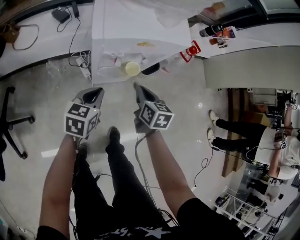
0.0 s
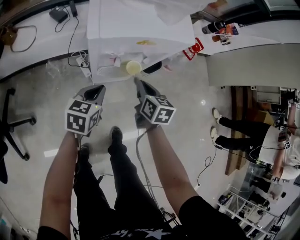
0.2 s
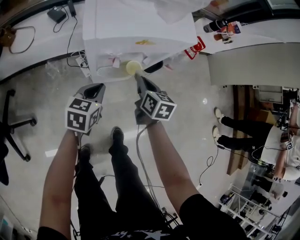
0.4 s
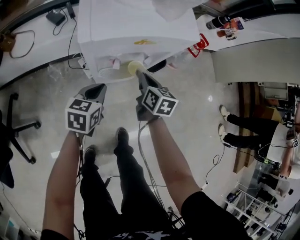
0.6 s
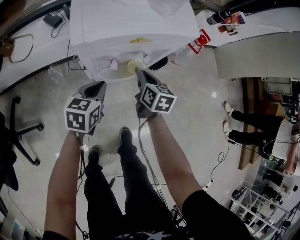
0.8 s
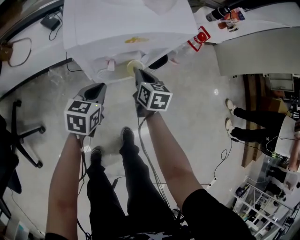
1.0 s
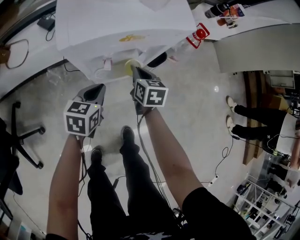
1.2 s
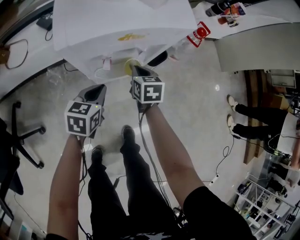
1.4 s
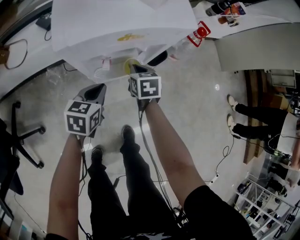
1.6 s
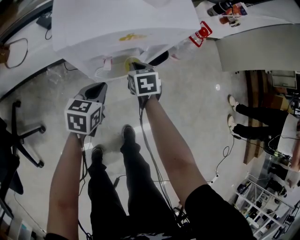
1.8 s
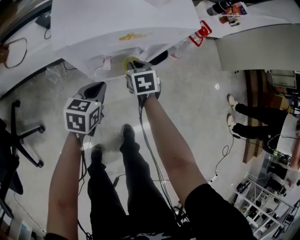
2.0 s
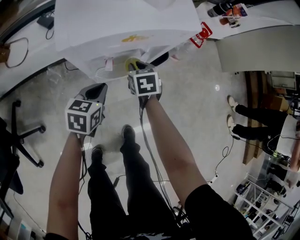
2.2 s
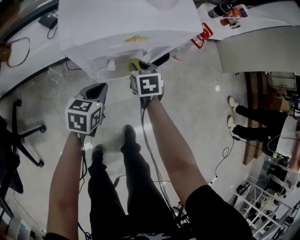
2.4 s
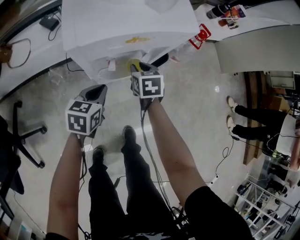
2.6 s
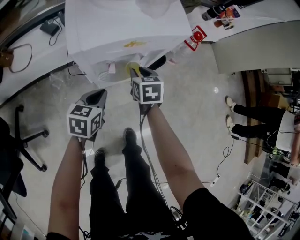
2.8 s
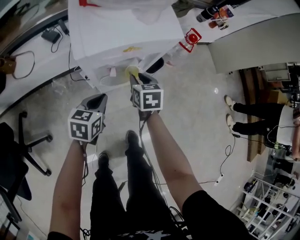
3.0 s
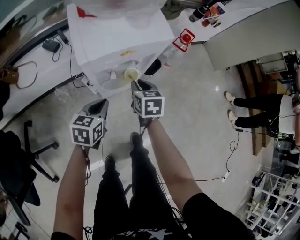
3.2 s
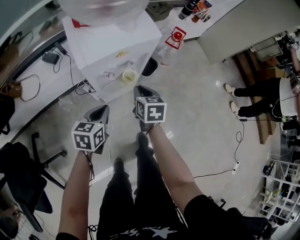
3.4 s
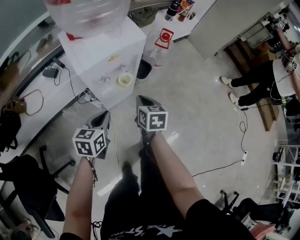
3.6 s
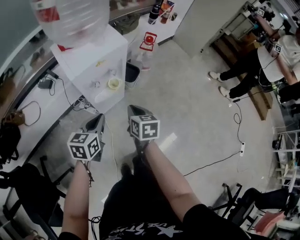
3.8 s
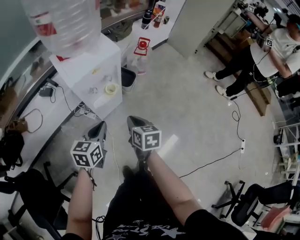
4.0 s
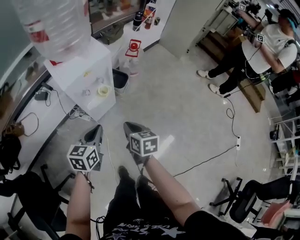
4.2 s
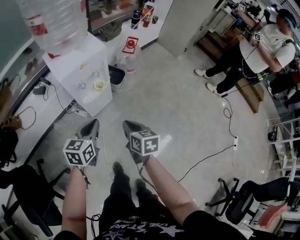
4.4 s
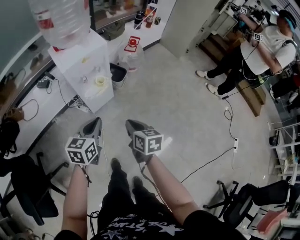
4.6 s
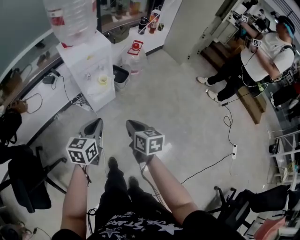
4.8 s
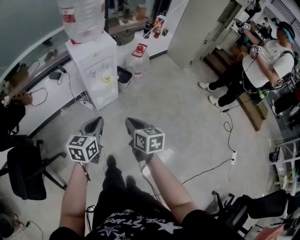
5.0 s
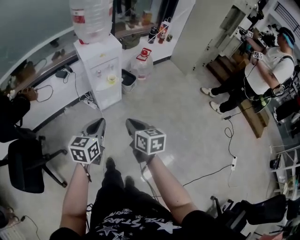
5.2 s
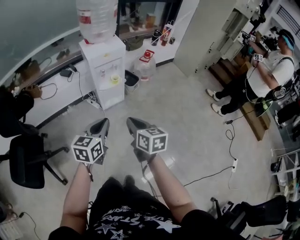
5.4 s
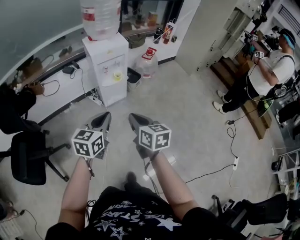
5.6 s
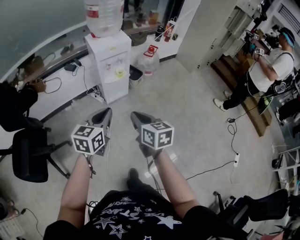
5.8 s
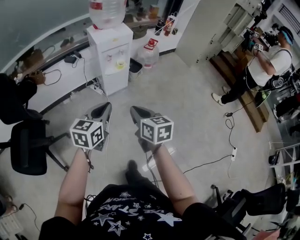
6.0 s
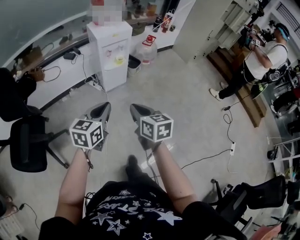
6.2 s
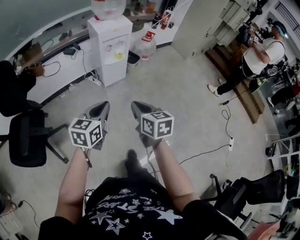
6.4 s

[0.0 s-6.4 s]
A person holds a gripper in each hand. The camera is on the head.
0.0 to 1.6 s: The right gripper moves downward and forward, approximately 15 cm. The left gripper moves downward and forward, roughly 10 cm.
1.6 to 3.2 s: The right gripper shifts approximately 10 cm upward and backward, and opens up, while the left gripper goes about 5 cm upward.
3.2 to 4.8 s: The grippers both shift backward, upward and to the right by about 40 cm. The right gripper swivels roughly 20 degrees, and closes up.
4.8 to 6.4 s: Both grippers move backward, some 30 cm.

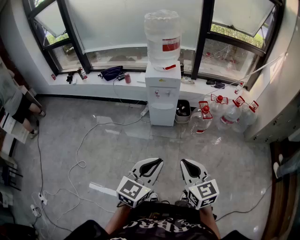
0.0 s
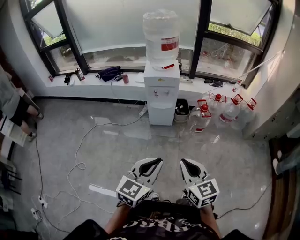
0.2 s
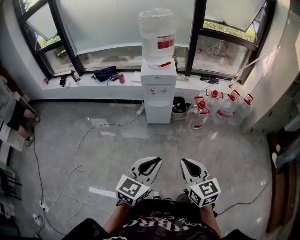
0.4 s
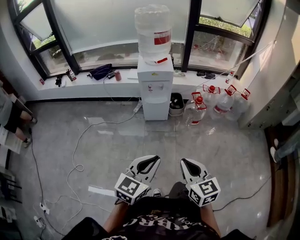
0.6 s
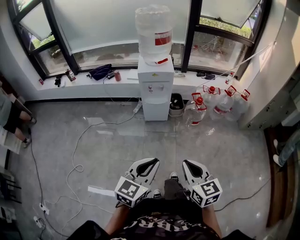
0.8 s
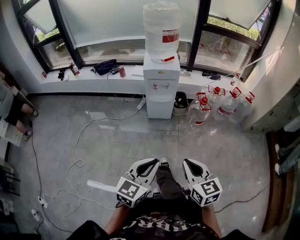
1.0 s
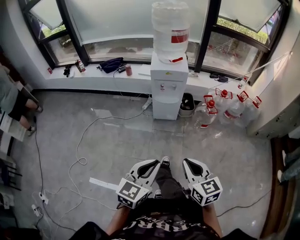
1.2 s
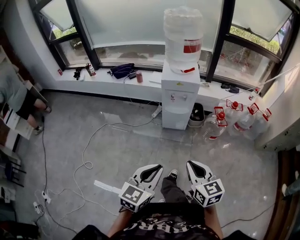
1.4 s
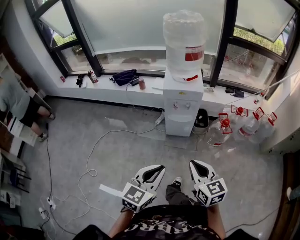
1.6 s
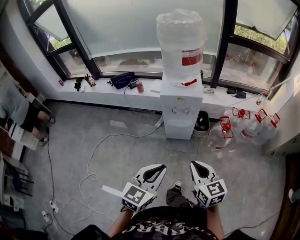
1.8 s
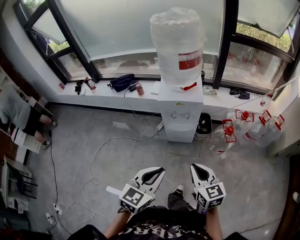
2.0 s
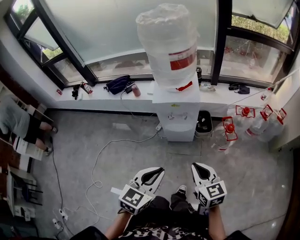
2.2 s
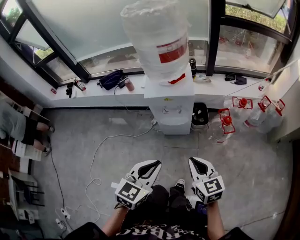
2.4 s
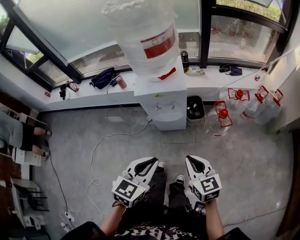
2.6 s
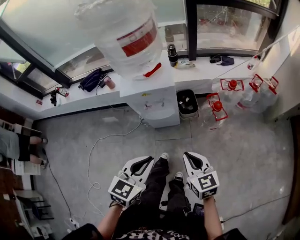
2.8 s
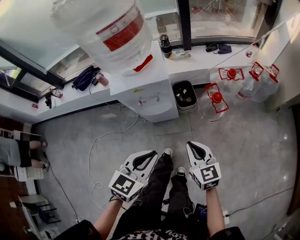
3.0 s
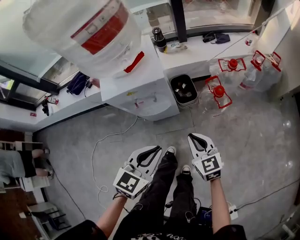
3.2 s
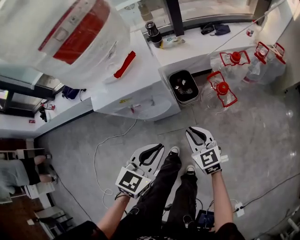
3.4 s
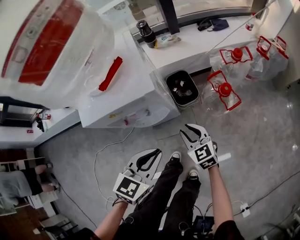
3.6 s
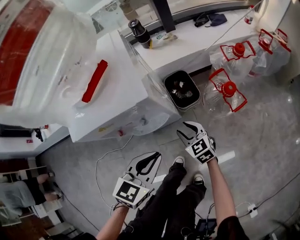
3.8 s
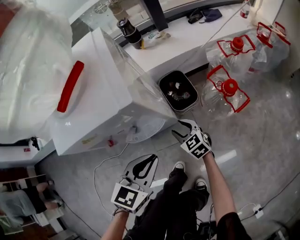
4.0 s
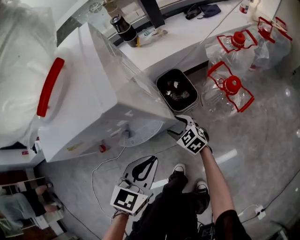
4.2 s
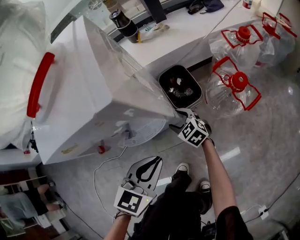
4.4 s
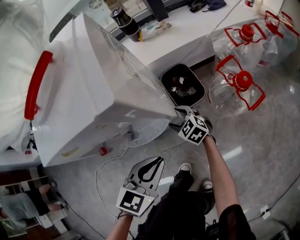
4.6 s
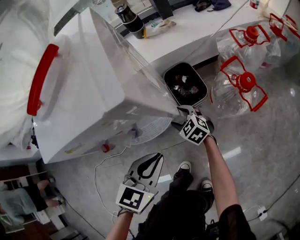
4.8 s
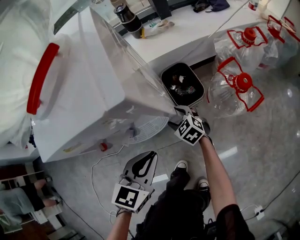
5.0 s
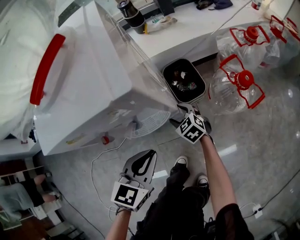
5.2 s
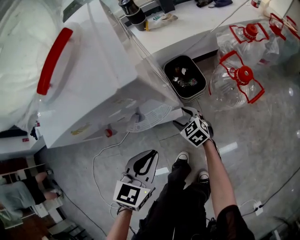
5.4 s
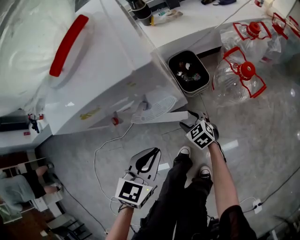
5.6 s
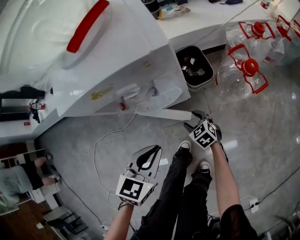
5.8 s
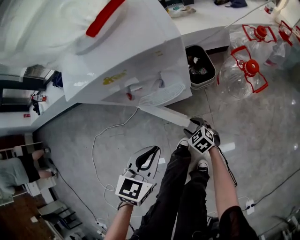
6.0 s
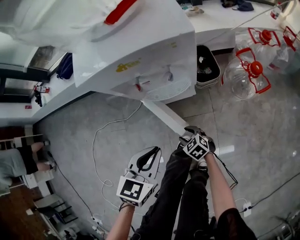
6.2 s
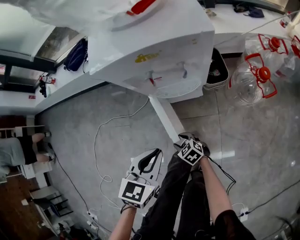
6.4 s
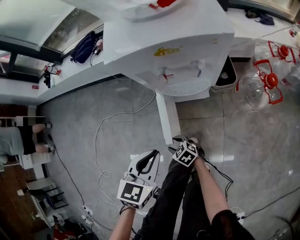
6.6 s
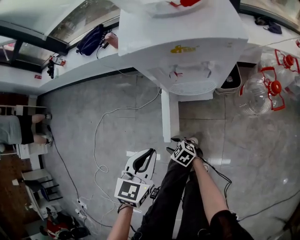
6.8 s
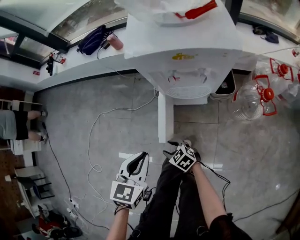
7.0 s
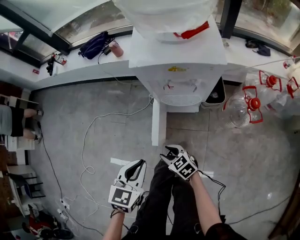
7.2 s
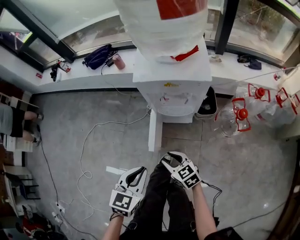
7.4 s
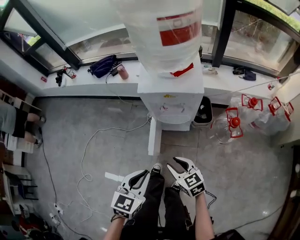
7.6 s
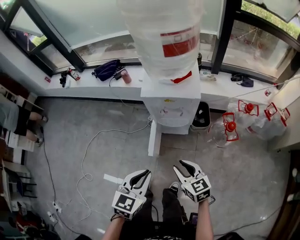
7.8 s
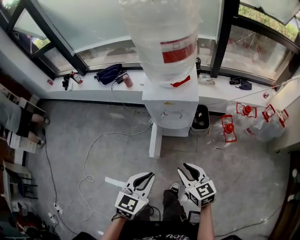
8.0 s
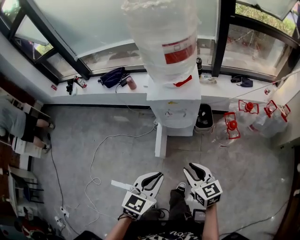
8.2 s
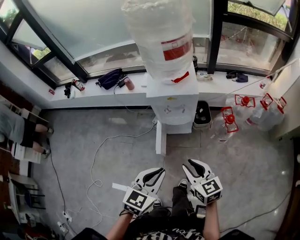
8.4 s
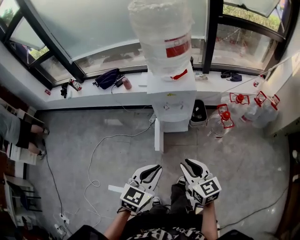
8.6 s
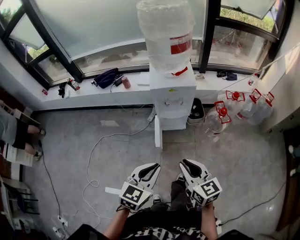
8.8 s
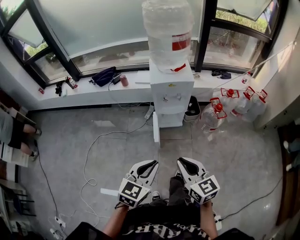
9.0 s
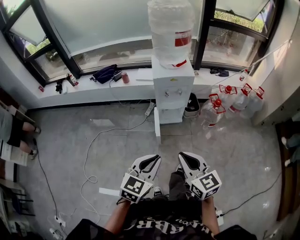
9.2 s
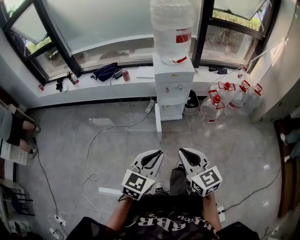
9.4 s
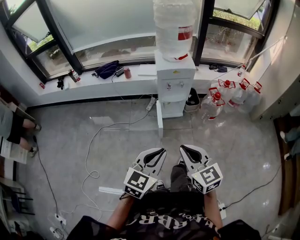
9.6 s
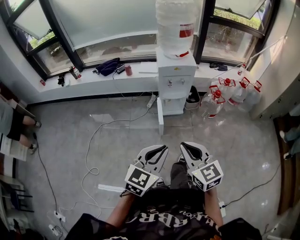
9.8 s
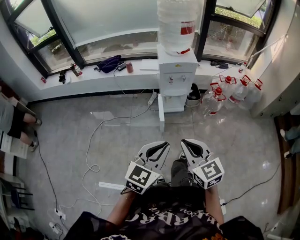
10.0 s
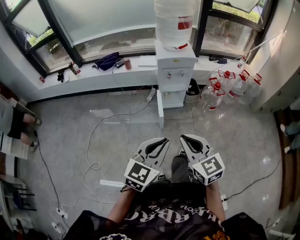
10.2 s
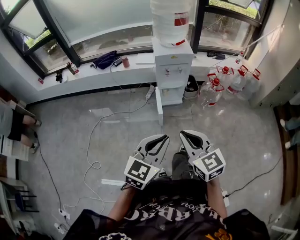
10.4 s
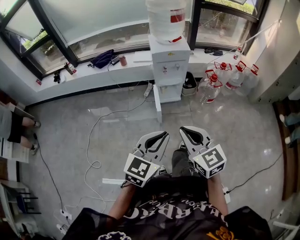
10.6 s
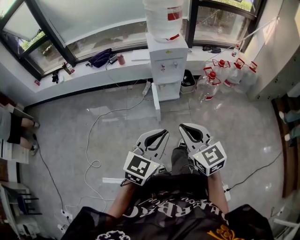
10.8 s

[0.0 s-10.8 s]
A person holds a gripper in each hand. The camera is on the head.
0.0 to 1.6 s: Both grippers move forward and to the left, approximately 20 cm.
1.6 to 3.0 s: The left gripper heads forward and downward, covering approximately 30 cm, and rotates about 20 degrees; the right gripper heads forward, downward and to the right, covering approximately 35 cm.
3.0 to 4.6 s: Both grippers travel together downward and forward, roughly 50 cm. The right gripper swivels roughly 30 degrees, and opens its fingers.
4.6 to 6.2 s: The right gripper moves backward, approximately 25 cm; the left gripper is displaced backward, to the left and upward by approximately 15 cm.
6.2 to 7.8 s: The left gripper goes some 30 cm upward and backward. Meanwhile the right gripper shifts some 40 cm upward, and swivels approximately 20 degrees.
7.8 to 9.2 s: The right gripper shifts roughly 35 cm backward, upward and to the left, swivels about 20 degrees, and closes its fingers. Meanwhile the left gripper goes about 25 cm backward, to the left and upward.
9.2 to 10.8 s: Both grippers move backward, roughly 10 cm.

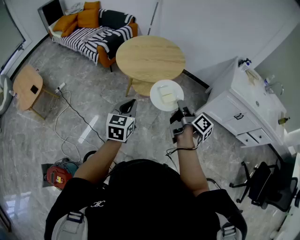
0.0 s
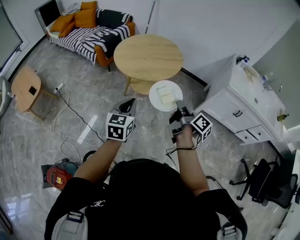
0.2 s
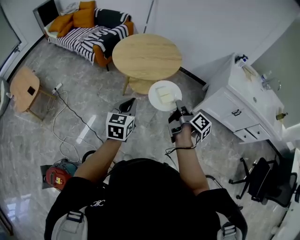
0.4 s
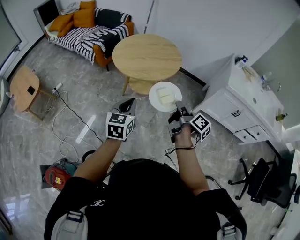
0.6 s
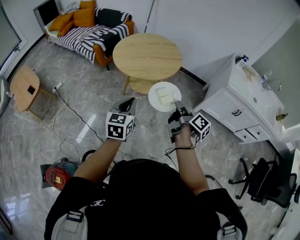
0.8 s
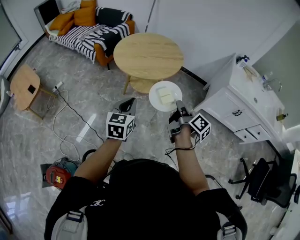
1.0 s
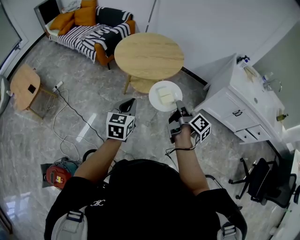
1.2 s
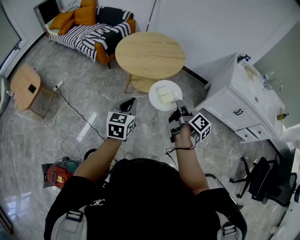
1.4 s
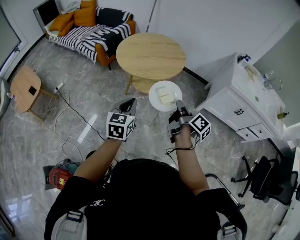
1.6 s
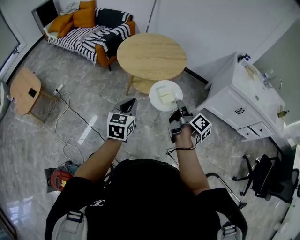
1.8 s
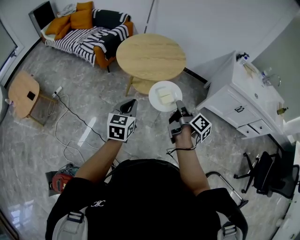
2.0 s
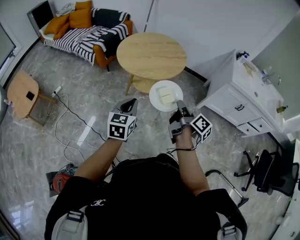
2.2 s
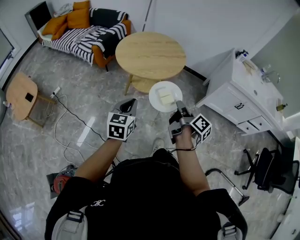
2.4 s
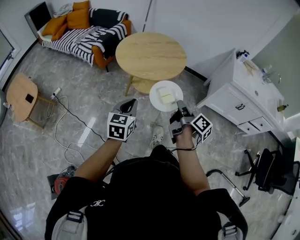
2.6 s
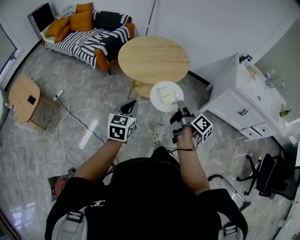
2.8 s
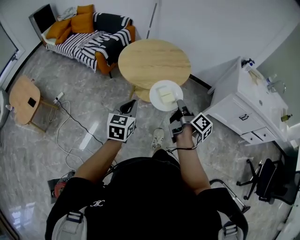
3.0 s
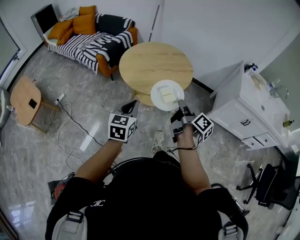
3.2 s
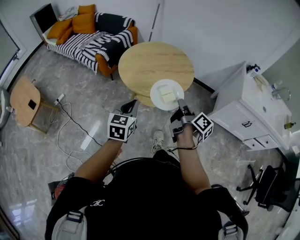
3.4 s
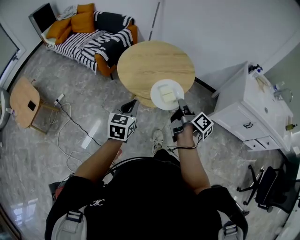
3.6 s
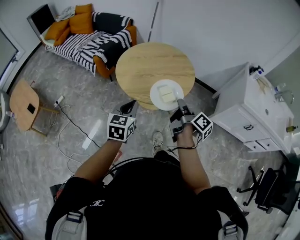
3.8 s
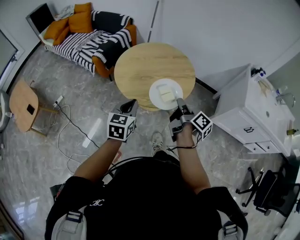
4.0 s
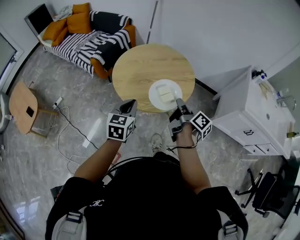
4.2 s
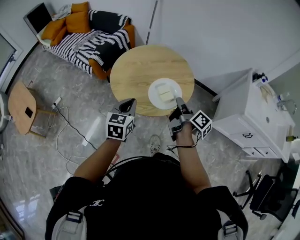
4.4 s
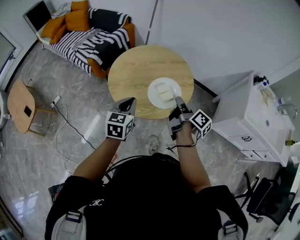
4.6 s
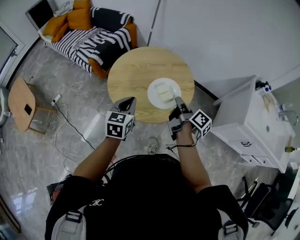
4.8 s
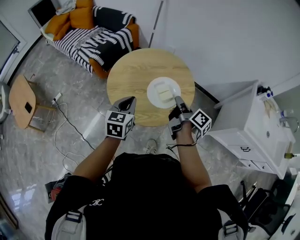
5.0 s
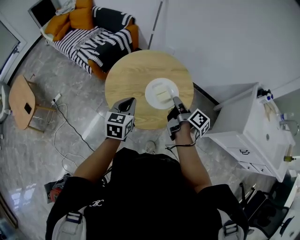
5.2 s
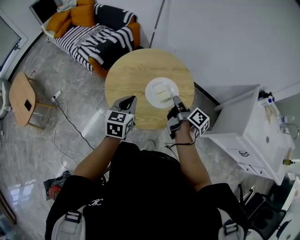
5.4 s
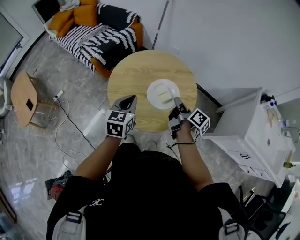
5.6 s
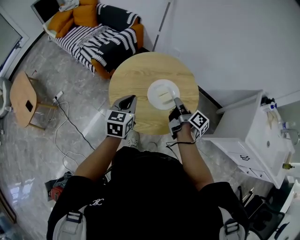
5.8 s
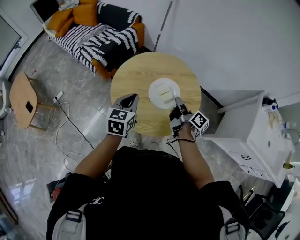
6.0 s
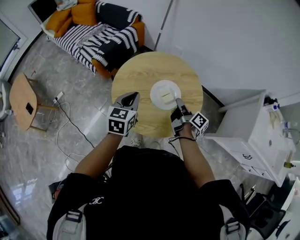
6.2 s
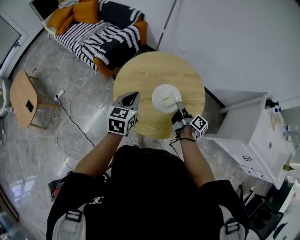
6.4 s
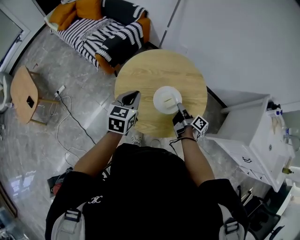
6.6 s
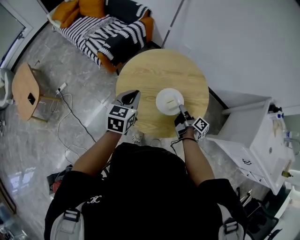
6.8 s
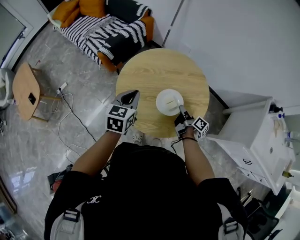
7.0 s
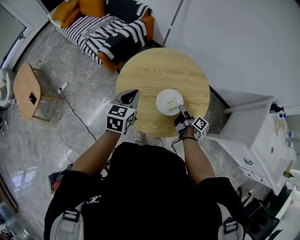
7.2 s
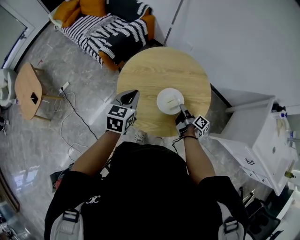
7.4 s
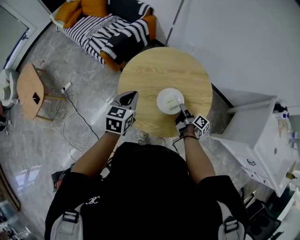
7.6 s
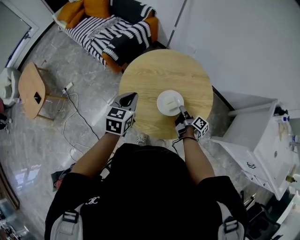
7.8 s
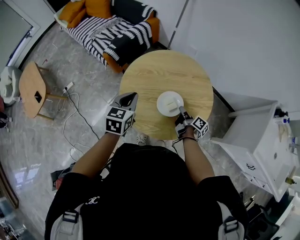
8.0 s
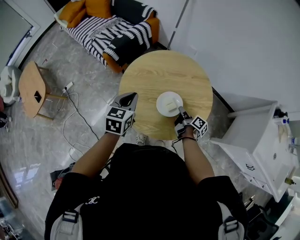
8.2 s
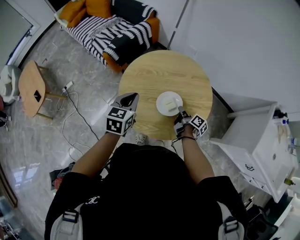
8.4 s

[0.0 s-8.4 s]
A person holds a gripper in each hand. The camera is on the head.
0.0 to 1.4 s: There are only small adjustments of the grippers.
1.4 to 2.8 s: The two grippers go about 5 cm to the left.
2.8 to 4.2 s: The grippers both shift forward by approximately 20 cm.
4.2 to 5.6 s: Both grippers move forward, some 15 cm.
5.6 to 7.0 s: The right gripper shifts approximately 15 cm downward. The left gripper goes approximately 10 cm forward and to the left.
7.0 to 8.4 s: The grippers stay close to where they were, moving slightly.
